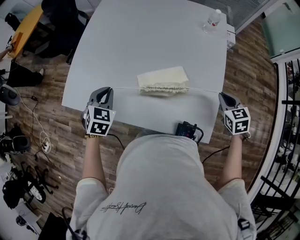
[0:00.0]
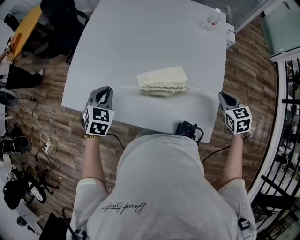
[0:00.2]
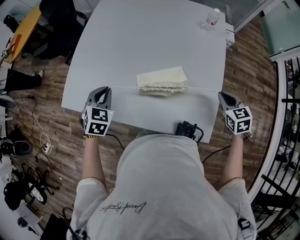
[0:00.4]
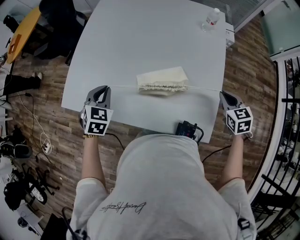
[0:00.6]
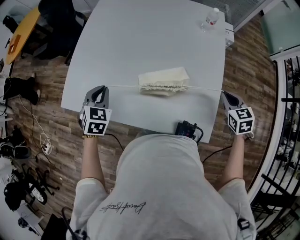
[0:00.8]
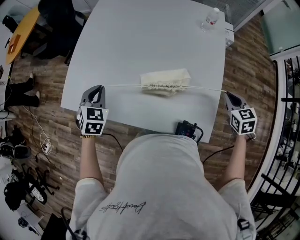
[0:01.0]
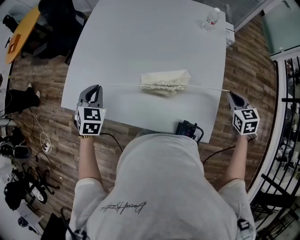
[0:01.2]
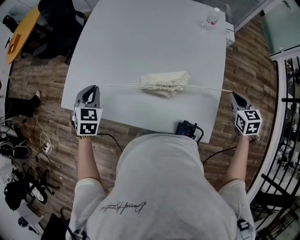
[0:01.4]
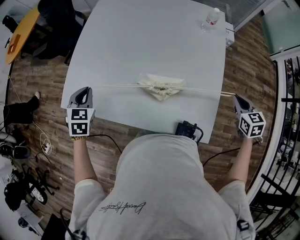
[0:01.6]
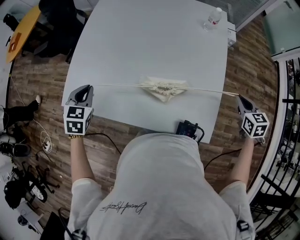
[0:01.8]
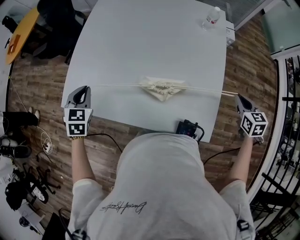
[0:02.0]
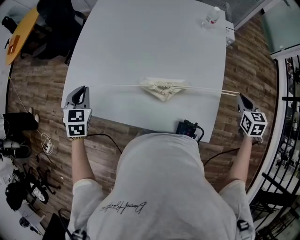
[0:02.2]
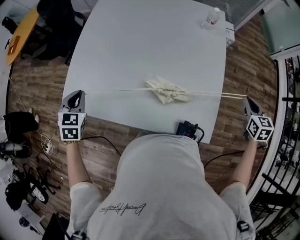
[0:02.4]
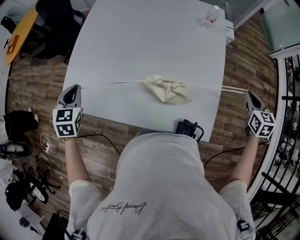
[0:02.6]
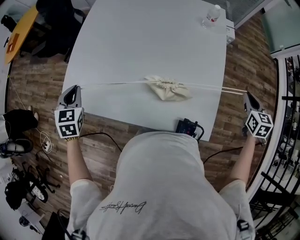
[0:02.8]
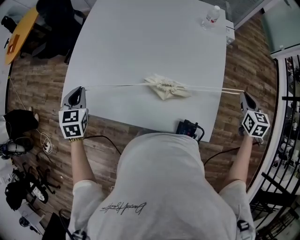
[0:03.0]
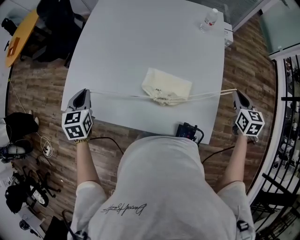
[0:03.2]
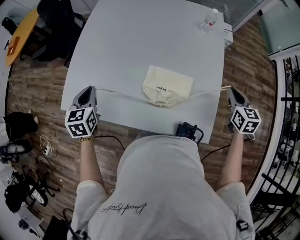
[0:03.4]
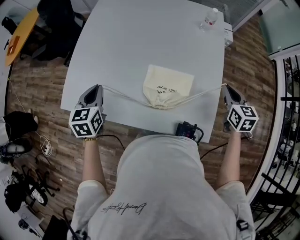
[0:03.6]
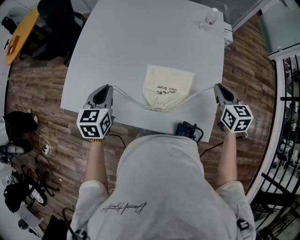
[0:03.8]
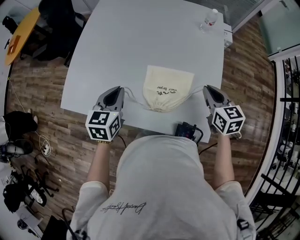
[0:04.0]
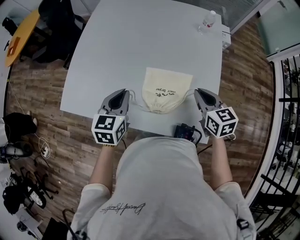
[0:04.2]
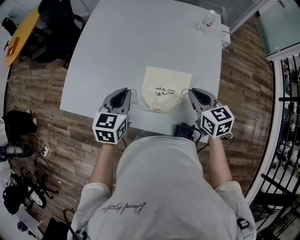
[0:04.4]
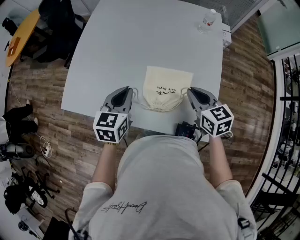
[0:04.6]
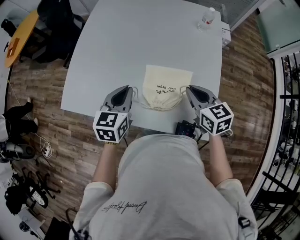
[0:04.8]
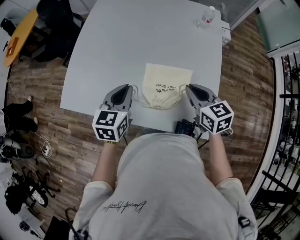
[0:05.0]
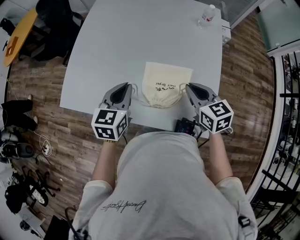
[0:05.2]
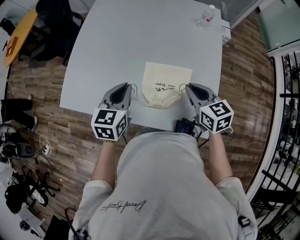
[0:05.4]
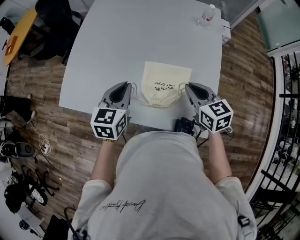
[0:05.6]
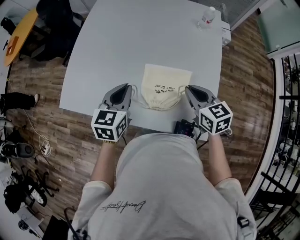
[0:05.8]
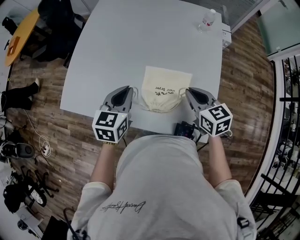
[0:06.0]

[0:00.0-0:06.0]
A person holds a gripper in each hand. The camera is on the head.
0:00.0 to 0:01.6: The right gripper travels to the right by approximately 5 cm. The left gripper moves to the left, some 5 cm.
0:03.0 to 0:04.4: The right gripper shifts approximately 25 cm to the left, and rotates about 30 degrees, while the left gripper goes approximately 20 cm to the right, and swivels roughly 30 degrees.
0:04.4 to 0:06.0: There are only small adjustments of the grippers.

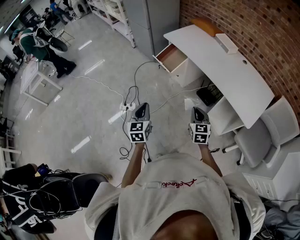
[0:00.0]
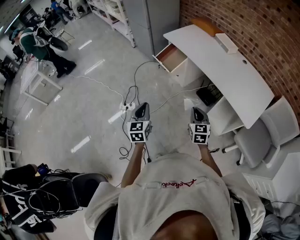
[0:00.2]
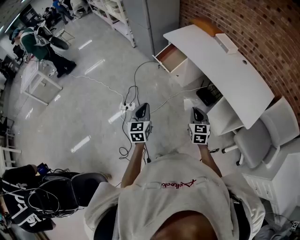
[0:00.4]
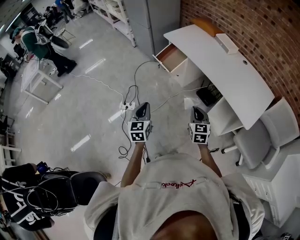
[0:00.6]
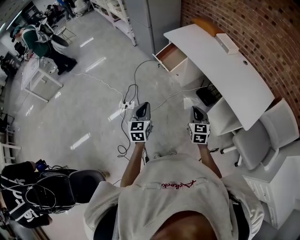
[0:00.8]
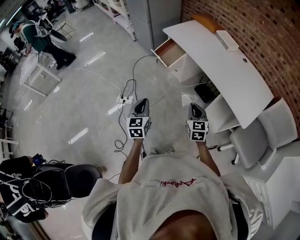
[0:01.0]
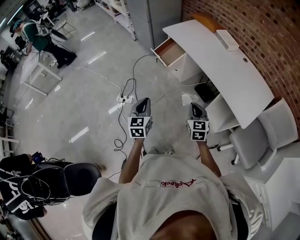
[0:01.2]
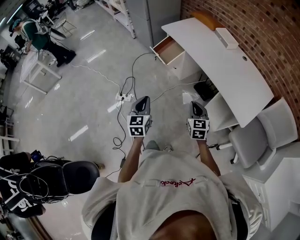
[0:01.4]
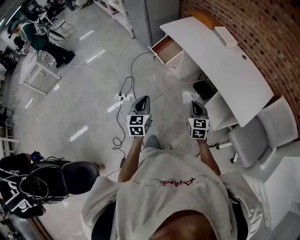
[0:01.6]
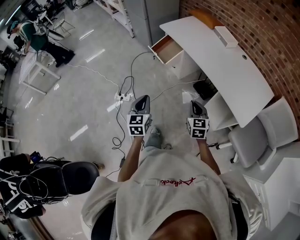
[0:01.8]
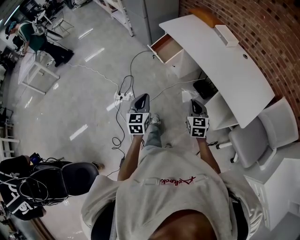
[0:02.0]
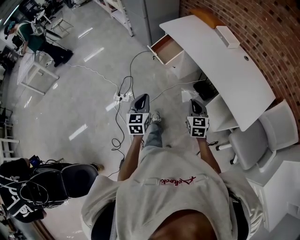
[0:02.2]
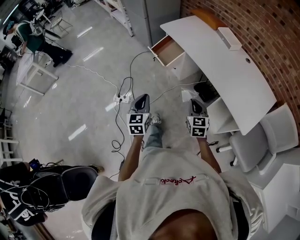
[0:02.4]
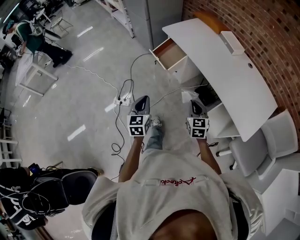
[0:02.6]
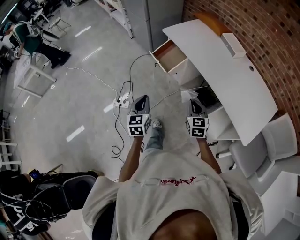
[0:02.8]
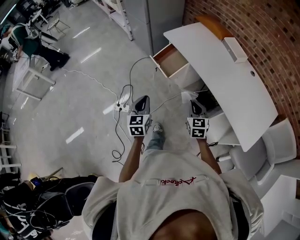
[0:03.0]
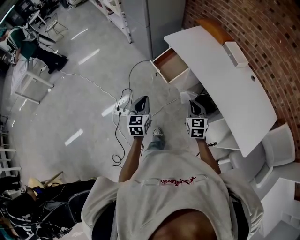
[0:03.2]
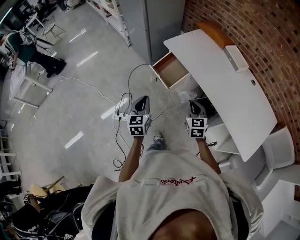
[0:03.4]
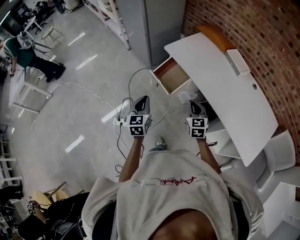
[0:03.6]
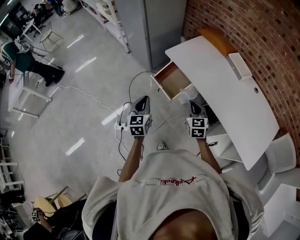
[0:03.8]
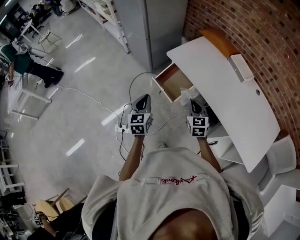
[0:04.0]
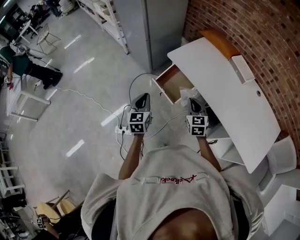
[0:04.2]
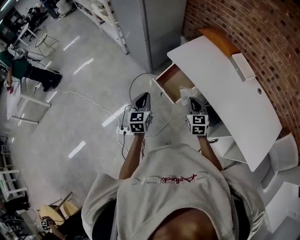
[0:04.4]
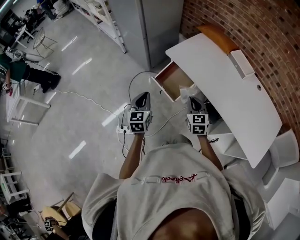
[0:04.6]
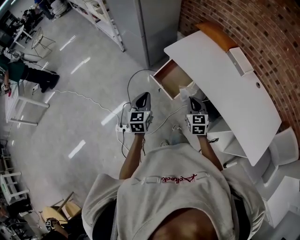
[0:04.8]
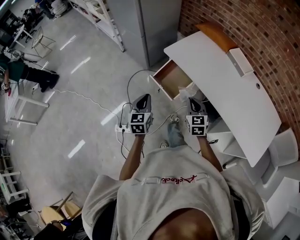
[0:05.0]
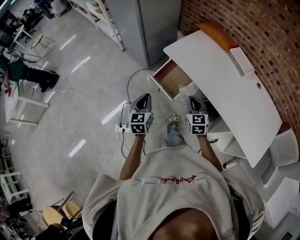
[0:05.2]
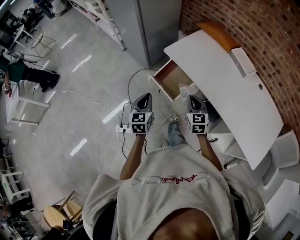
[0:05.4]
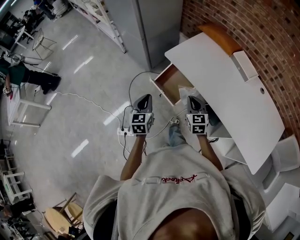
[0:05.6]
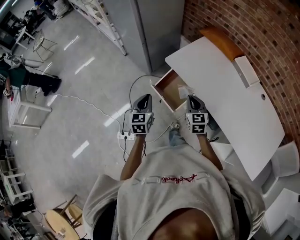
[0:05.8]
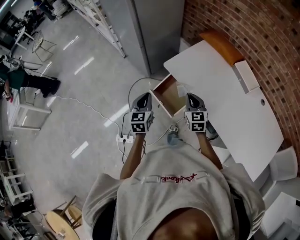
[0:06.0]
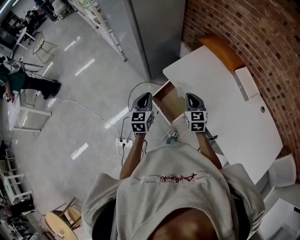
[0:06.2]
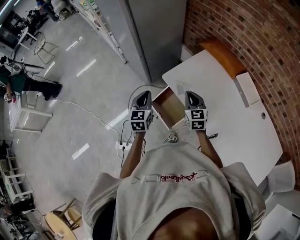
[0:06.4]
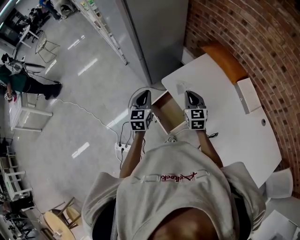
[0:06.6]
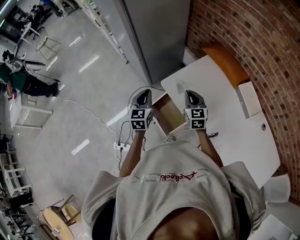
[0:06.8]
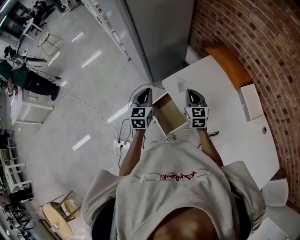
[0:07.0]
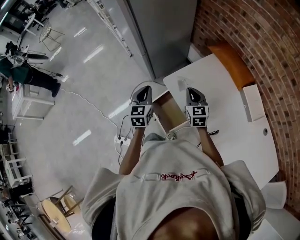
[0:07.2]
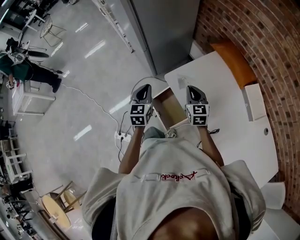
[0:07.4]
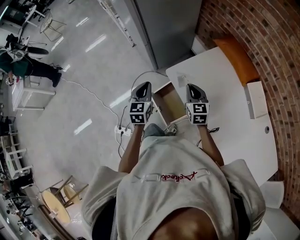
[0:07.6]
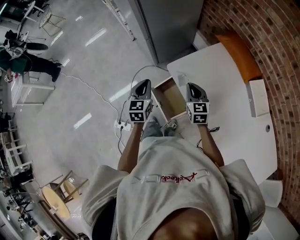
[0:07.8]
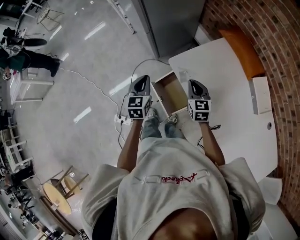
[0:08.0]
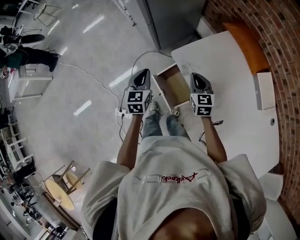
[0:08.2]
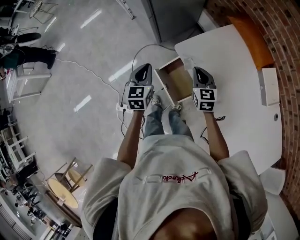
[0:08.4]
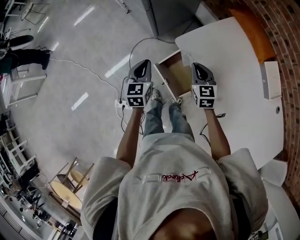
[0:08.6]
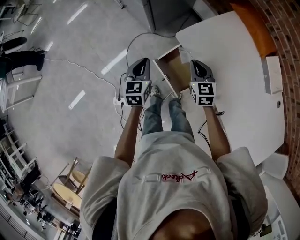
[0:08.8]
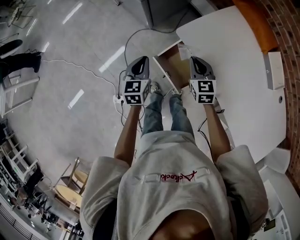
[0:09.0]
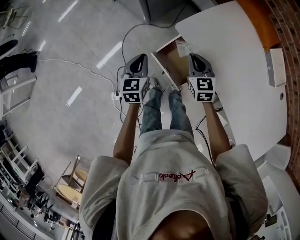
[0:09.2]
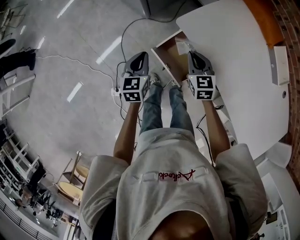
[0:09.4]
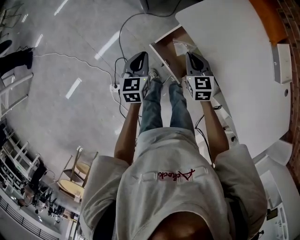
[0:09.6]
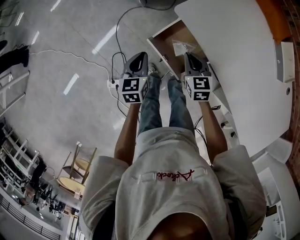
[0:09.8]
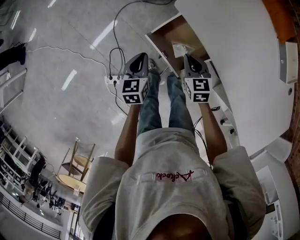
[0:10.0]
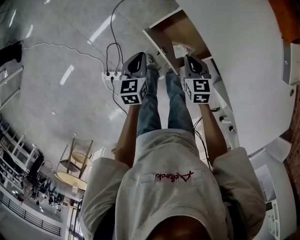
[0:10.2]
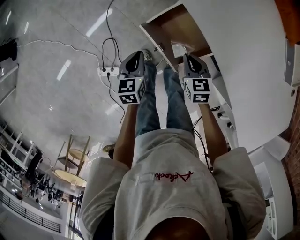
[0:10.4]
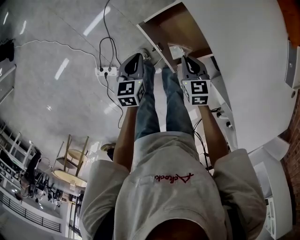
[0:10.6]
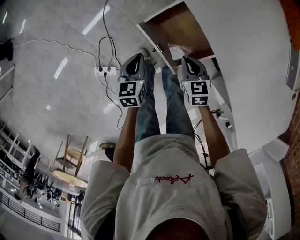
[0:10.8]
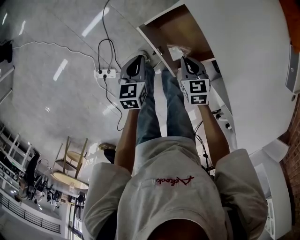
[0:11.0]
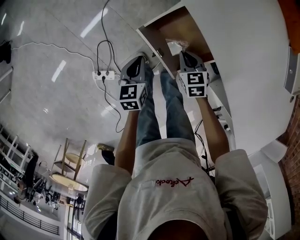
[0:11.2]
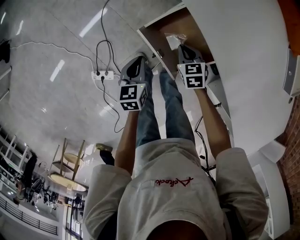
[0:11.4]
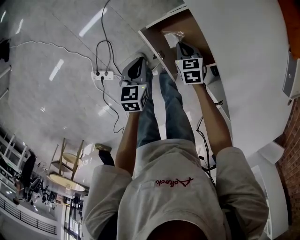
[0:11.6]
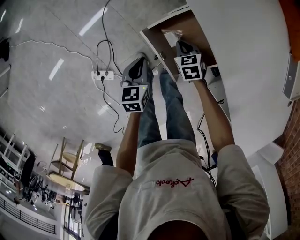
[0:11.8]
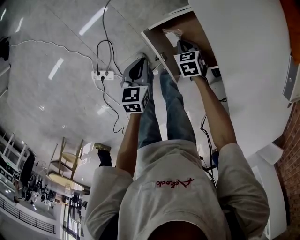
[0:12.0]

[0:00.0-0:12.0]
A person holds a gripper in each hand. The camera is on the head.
0:00.0 to 0:01.6: The two grippers go roughly 10 cm to the right.
0:01.6 to 0:03.0: Both grippers move forward, some 20 cm.
0:03.0 to 0:04.4: Both grippers move forward, about 25 cm.
0:04.4 to 0:06.0: The grippers both shift forward by approximately 15 cm.
0:06.0 to 0:07.6: The two grippers go about 15 cm forward.
0:07.6 to 0:09.0: Both grippers travel together downward and to the left, approximately 15 cm.
0:09.0 to 0:10.4: Both grippers travel together downward and backward, approximately 20 cm.
0:10.4 to 0:12.0: The right gripper is displaced downward and forward by about 15 cm, and rotates about 20 degrees.

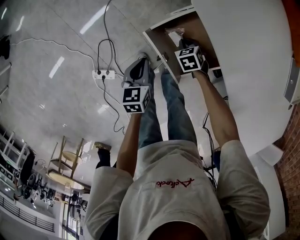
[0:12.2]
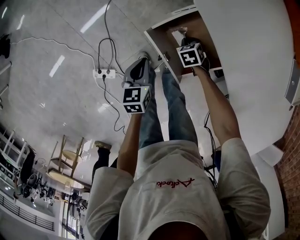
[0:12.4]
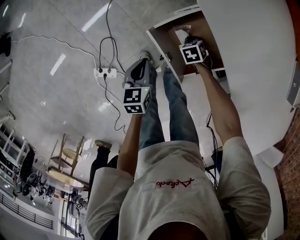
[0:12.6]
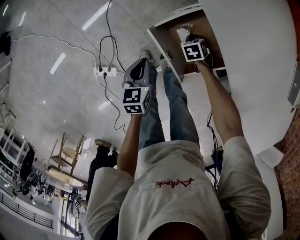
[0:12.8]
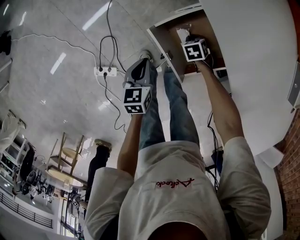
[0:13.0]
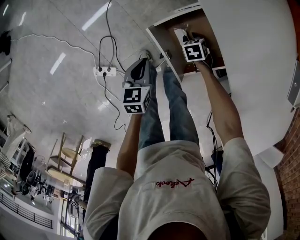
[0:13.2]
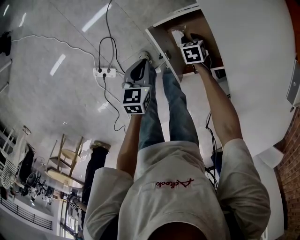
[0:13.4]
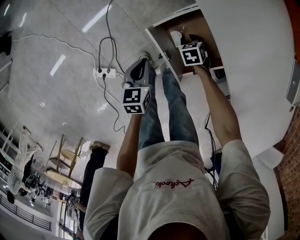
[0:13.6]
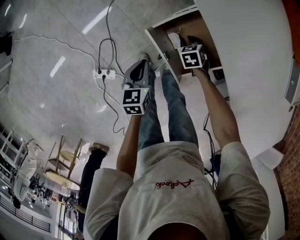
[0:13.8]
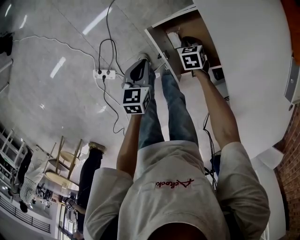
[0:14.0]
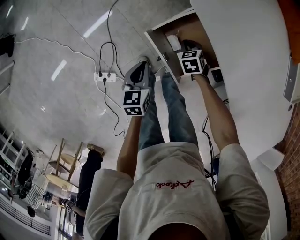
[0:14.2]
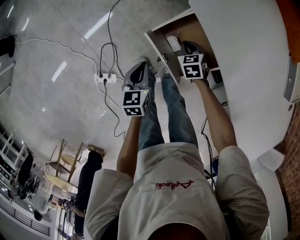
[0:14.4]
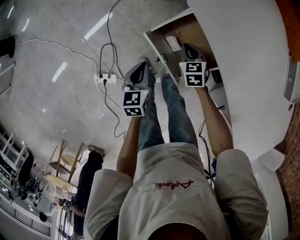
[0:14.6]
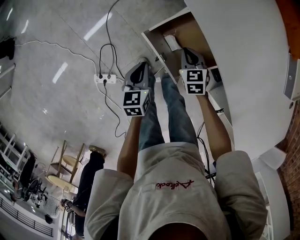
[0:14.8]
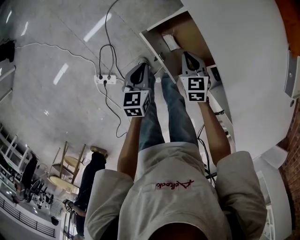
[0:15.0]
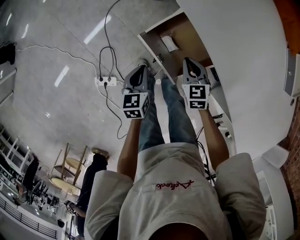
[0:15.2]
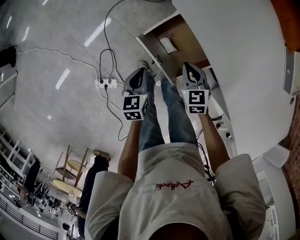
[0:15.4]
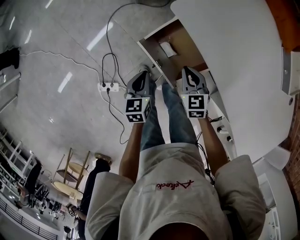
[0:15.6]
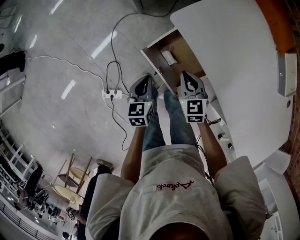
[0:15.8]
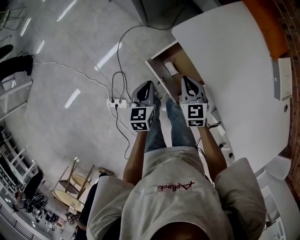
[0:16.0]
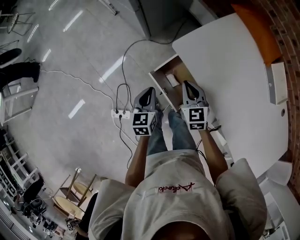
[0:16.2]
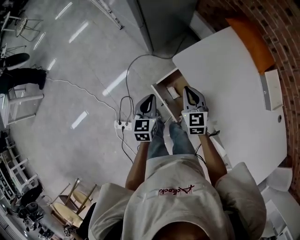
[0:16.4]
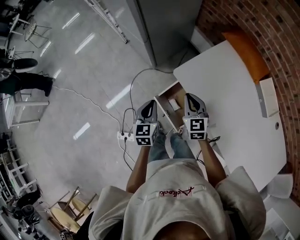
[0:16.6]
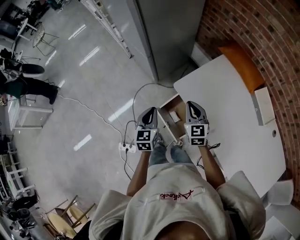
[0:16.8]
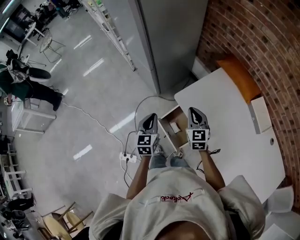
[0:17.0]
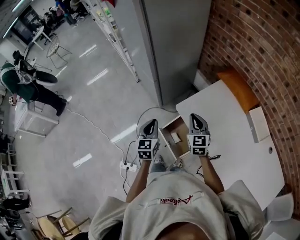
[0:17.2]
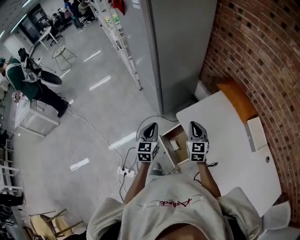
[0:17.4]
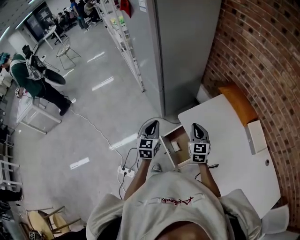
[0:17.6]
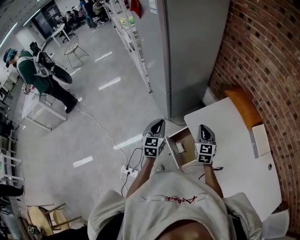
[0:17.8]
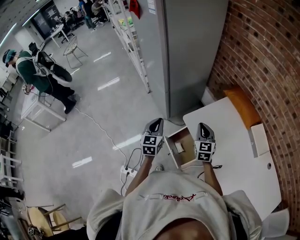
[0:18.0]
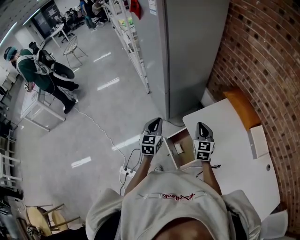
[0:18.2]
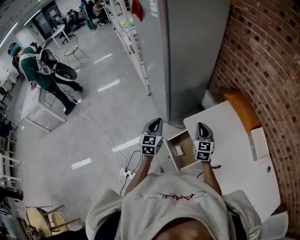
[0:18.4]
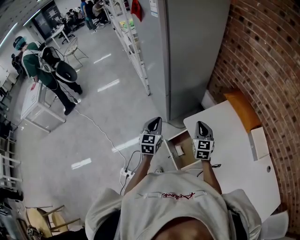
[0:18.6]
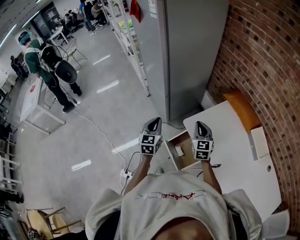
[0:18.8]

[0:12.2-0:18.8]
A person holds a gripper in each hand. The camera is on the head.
0:12.2 to 0:13.8: The right gripper opens up.
0:13.8 to 0:15.4: The right gripper moves upward and backward, roughly 15 cm, turns by approximately 20 degrees, and closes up.
0:15.4 to 0:17.2: Both grippers move upward, some 30 cm. The left gripper changes its angle by about 30 degrees. Meanwhile the right gripper changes its angle by some 30 degrees.
0:17.2 to 0:18.8: The left gripper is displaced upward by approximately 5 cm.
